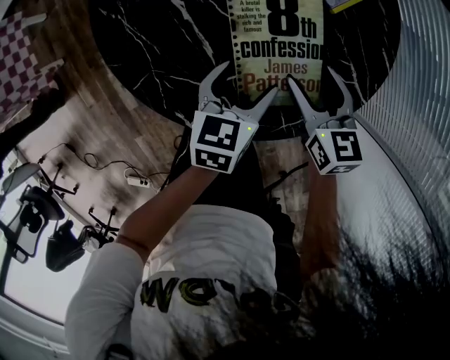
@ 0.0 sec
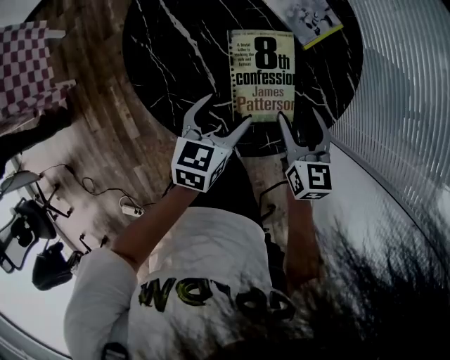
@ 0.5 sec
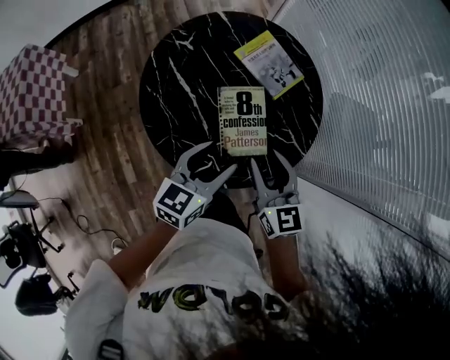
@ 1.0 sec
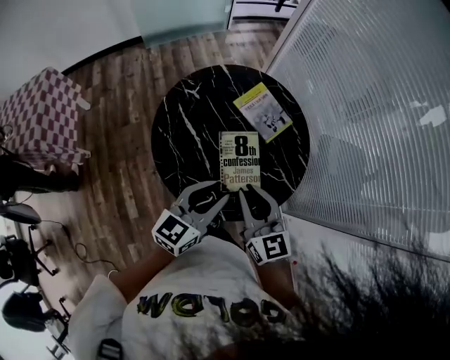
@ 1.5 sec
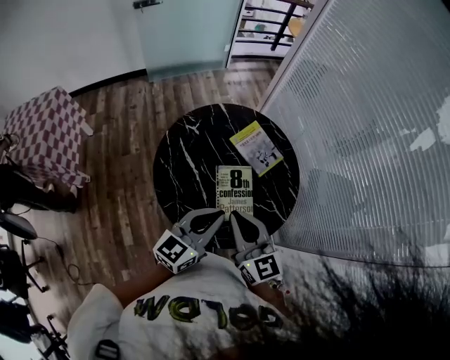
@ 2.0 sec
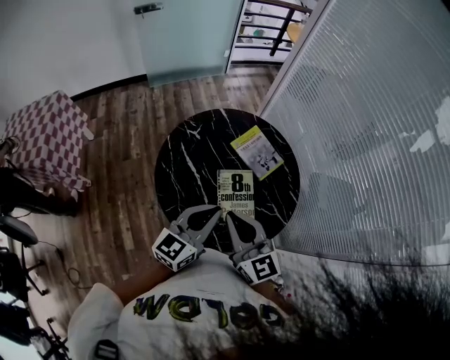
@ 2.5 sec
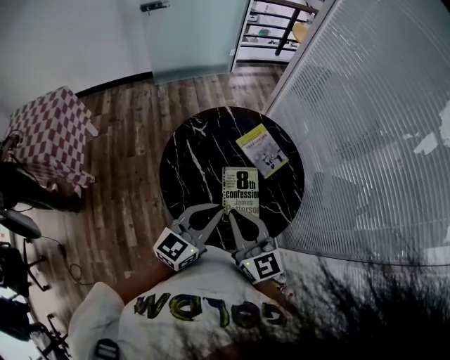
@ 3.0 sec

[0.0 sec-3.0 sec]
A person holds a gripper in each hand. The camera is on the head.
0.0 sec to 1.5 sec: The grippers both shift upward by some 35 cm. The right gripper turns by some 30 degrees, and closes up; the left gripper turns by roughly 30 degrees, and closes up.
1.5 sec to 3.0 sec: The left gripper changes place by approximately 5 cm. Meanwhile the right gripper goes about 10 cm upward and to the left.

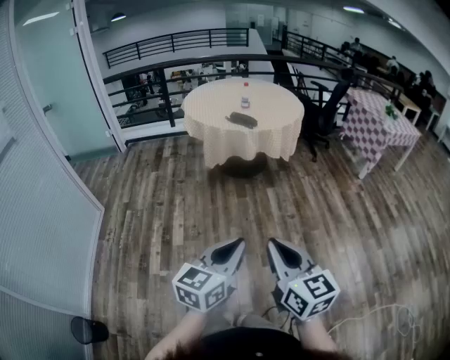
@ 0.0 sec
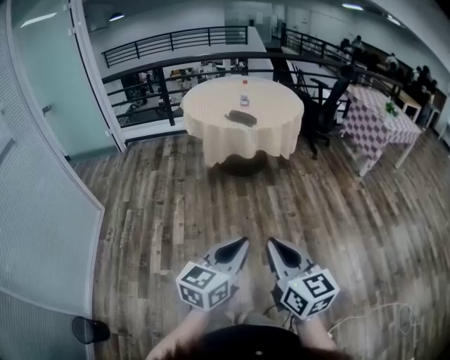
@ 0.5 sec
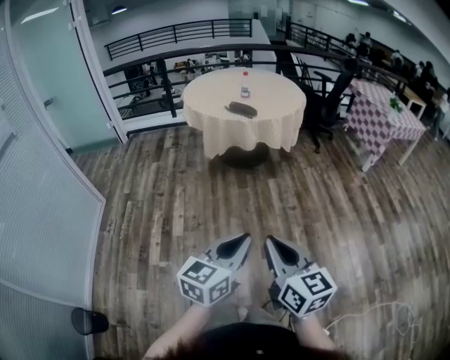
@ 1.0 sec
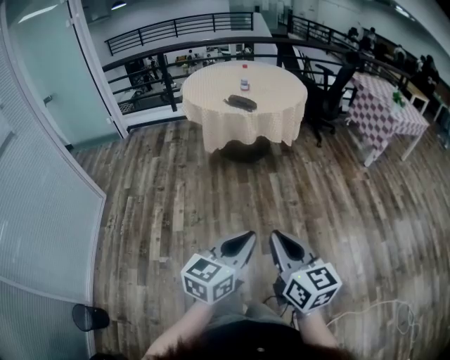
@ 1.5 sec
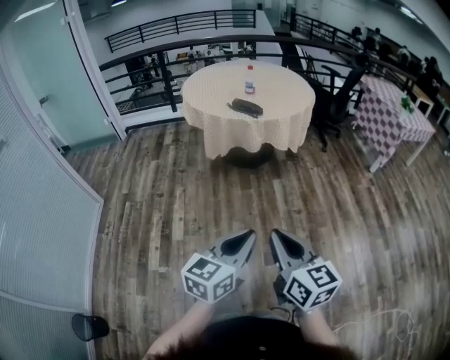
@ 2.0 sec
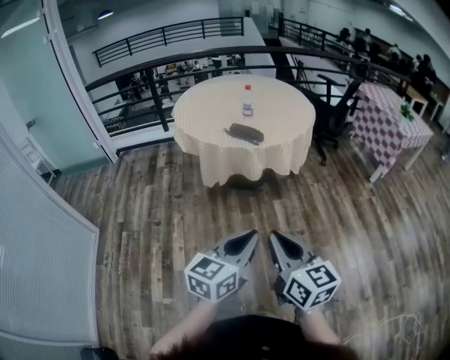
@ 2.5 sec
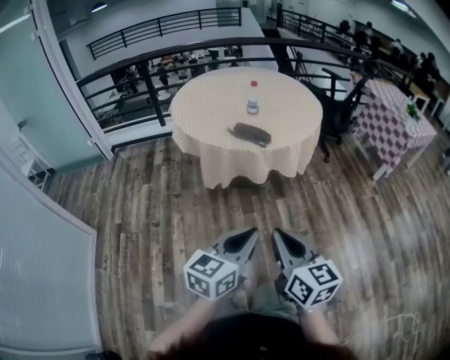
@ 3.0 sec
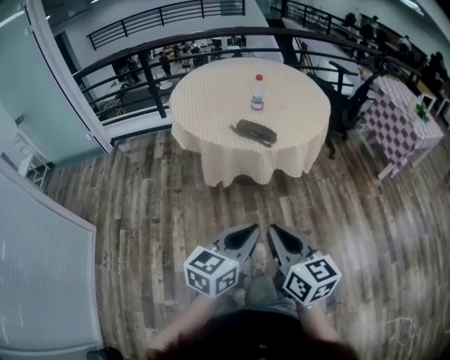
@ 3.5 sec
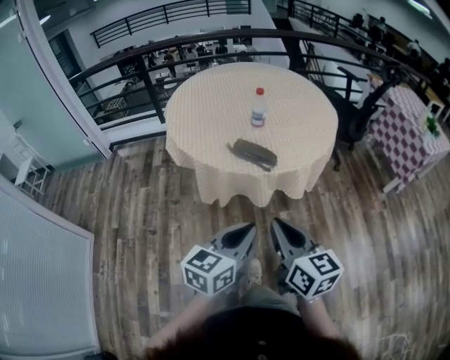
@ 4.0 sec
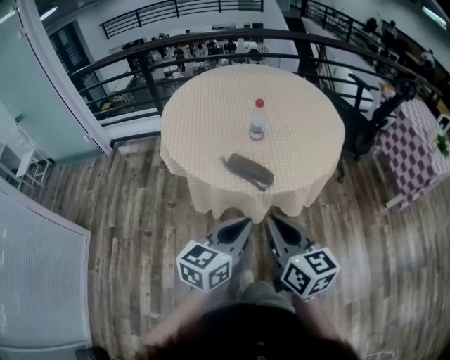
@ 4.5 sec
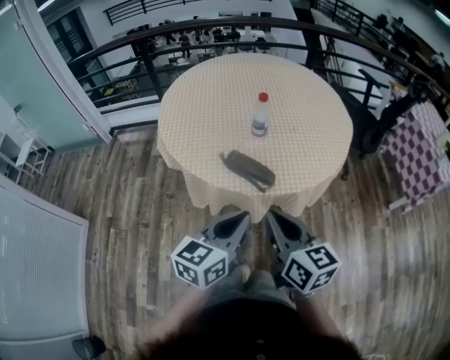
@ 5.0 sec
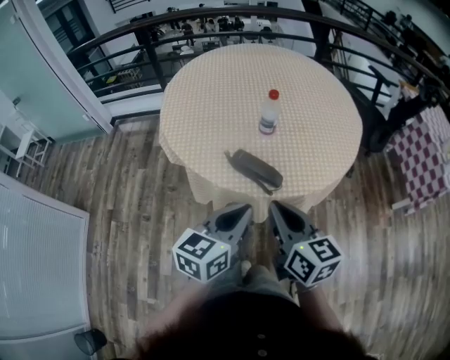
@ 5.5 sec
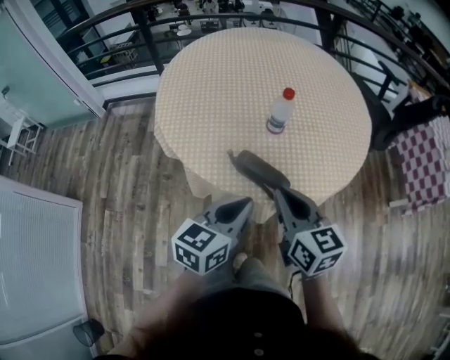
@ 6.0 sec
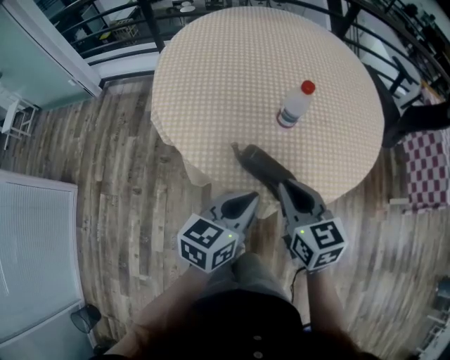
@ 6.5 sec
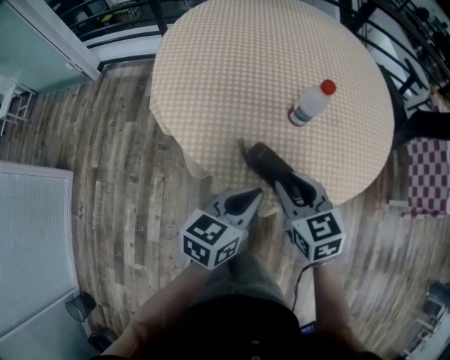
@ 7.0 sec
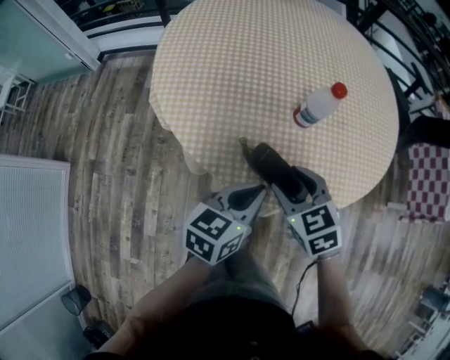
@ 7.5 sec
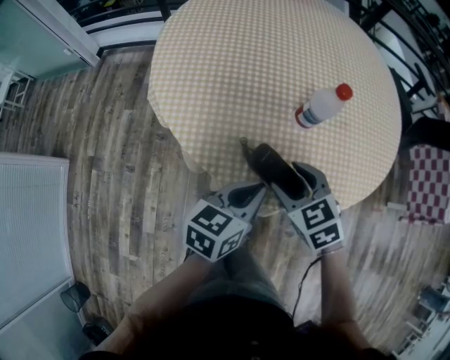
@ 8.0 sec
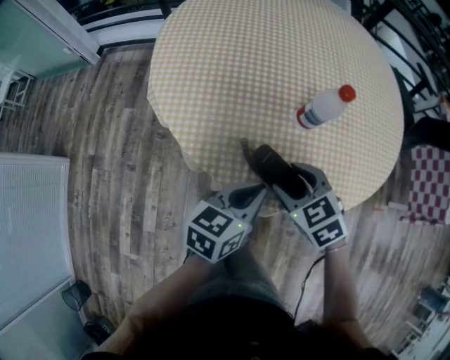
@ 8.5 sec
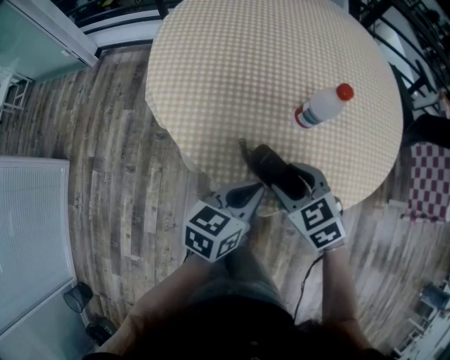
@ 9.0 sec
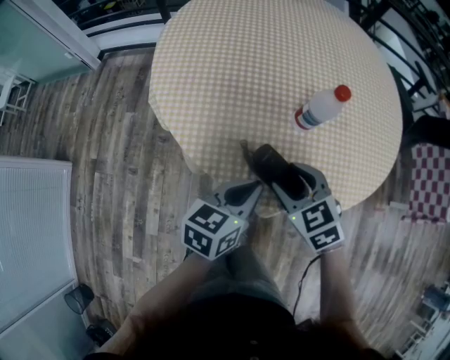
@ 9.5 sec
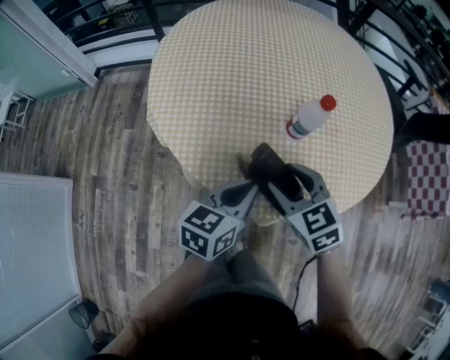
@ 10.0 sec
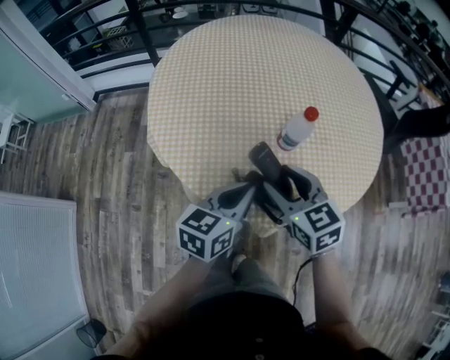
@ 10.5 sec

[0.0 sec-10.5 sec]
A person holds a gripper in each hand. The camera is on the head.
0.0 sec to 2.0 sec: The left gripper moves forward, some 10 cm; the right gripper is displaced forward and downward by some 15 cm.
2.0 sec to 4.0 sec: The two grippers travel together, forward, approximately 40 cm.
4.0 sec to 6.5 sec: The two grippers go roughly 30 cm forward. The right gripper turns by roughly 20 degrees.
6.5 sec to 8.5 sec: Both grippers move downward and forward, roughly 10 cm. The right gripper rotates roughly 40 degrees, and opens up.
8.5 sec to 10.5 sec: The left gripper shifts approximately 5 cm upward. The right gripper moves upward, about 10 cm, and rotates about 30 degrees.

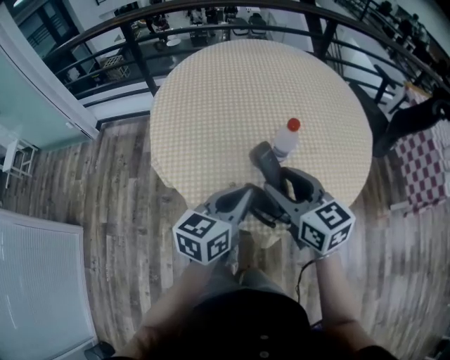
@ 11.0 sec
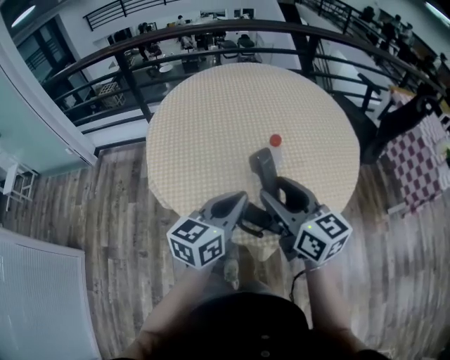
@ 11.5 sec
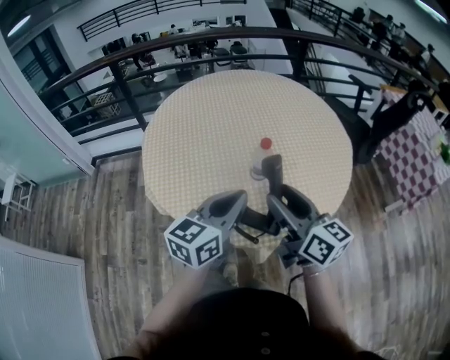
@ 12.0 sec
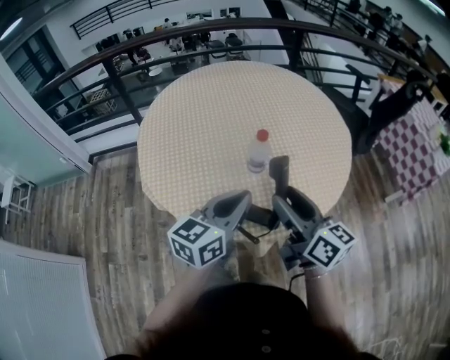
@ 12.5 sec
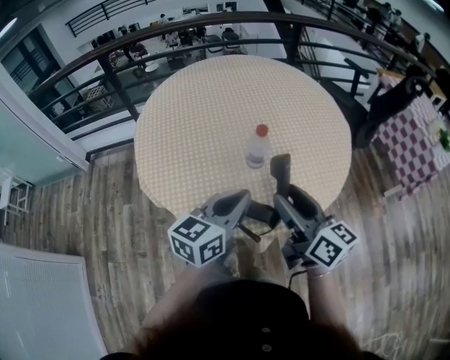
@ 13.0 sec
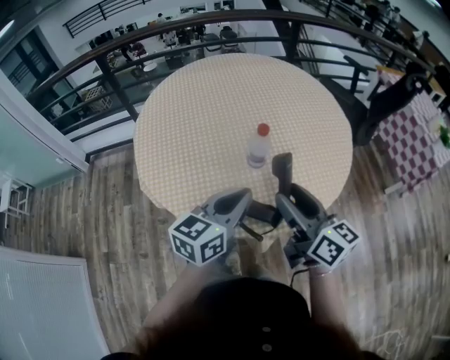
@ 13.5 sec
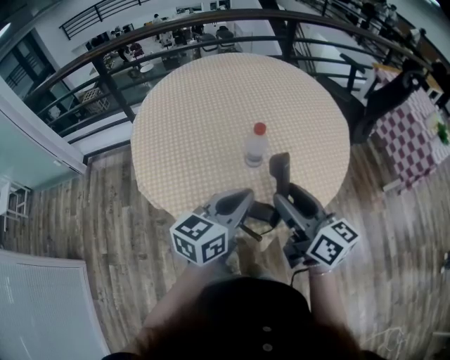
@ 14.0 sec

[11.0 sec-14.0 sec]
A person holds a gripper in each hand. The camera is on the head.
11.0 sec to 12.5 sec: The left gripper moves to the right, roughly 5 cm. The right gripper heads to the right, covering about 10 cm, and turns by some 30 degrees.
12.5 sec to 14.0 sec: The grippers make only small movements.

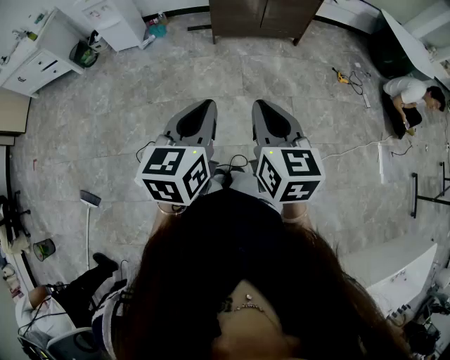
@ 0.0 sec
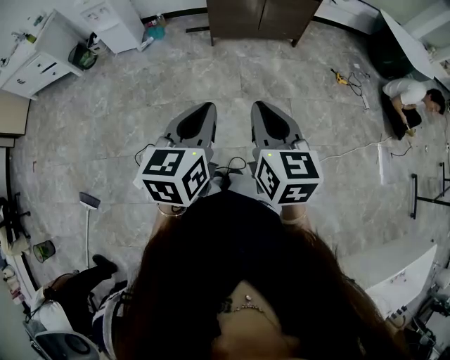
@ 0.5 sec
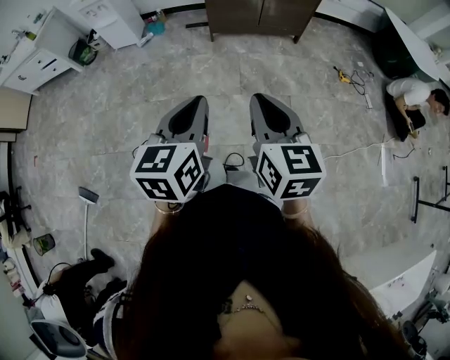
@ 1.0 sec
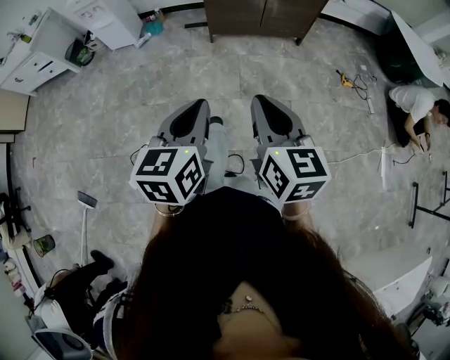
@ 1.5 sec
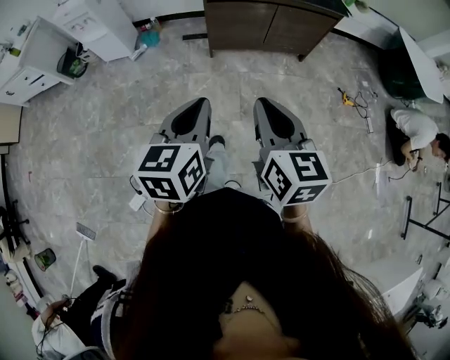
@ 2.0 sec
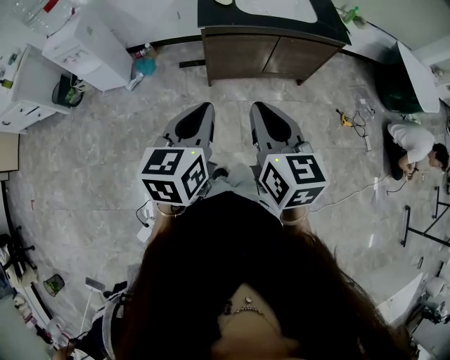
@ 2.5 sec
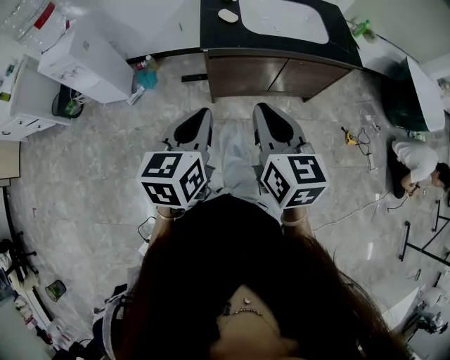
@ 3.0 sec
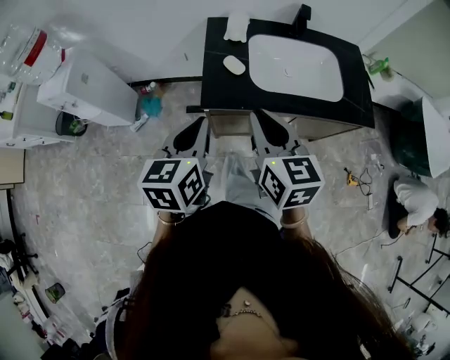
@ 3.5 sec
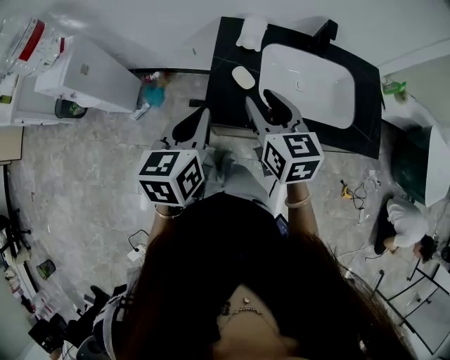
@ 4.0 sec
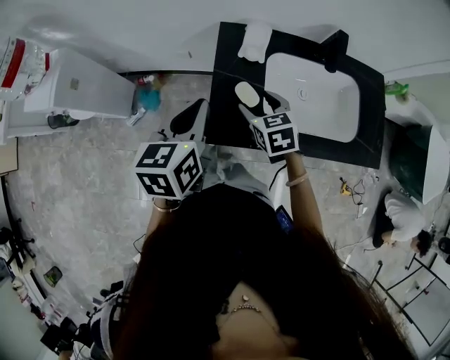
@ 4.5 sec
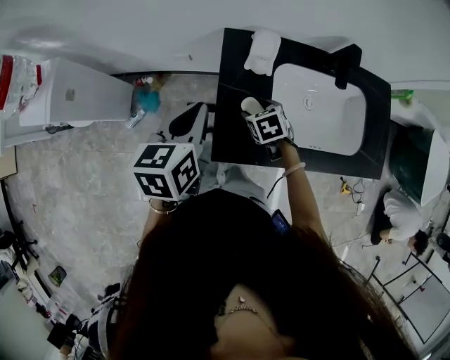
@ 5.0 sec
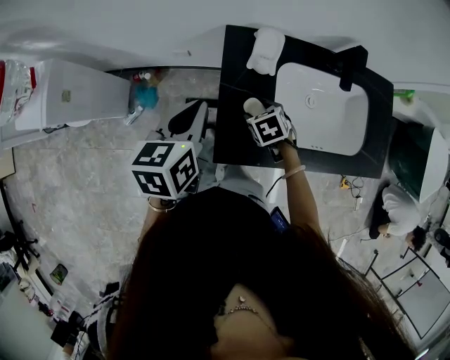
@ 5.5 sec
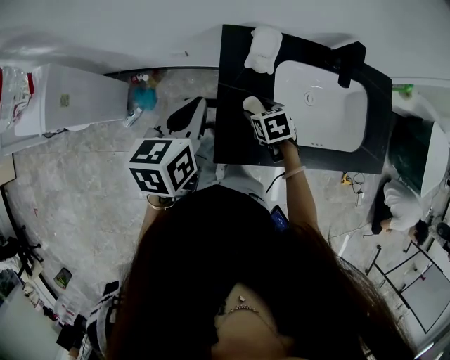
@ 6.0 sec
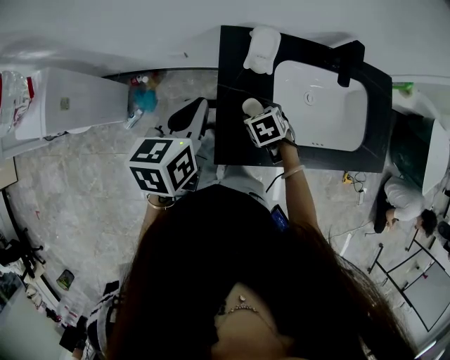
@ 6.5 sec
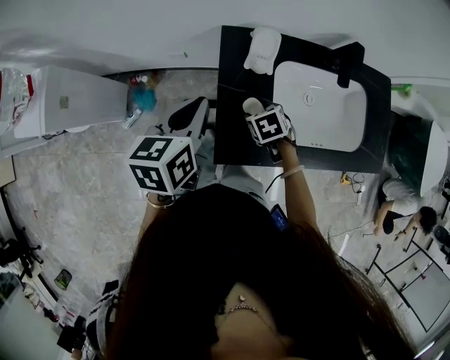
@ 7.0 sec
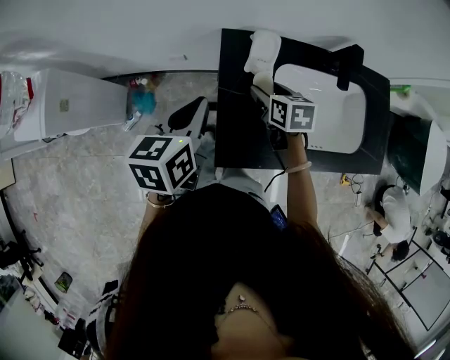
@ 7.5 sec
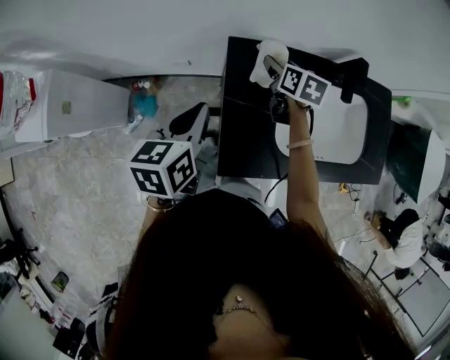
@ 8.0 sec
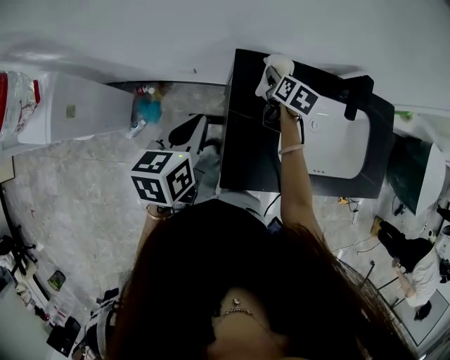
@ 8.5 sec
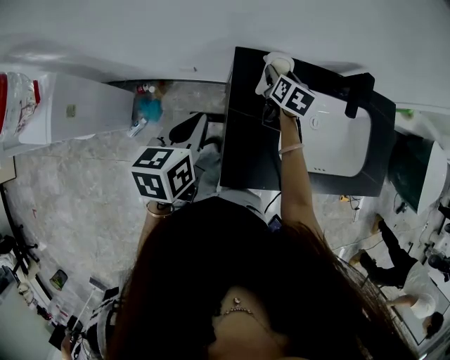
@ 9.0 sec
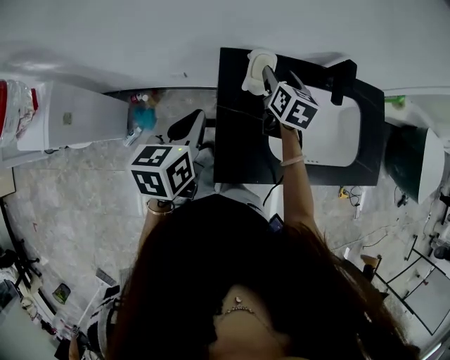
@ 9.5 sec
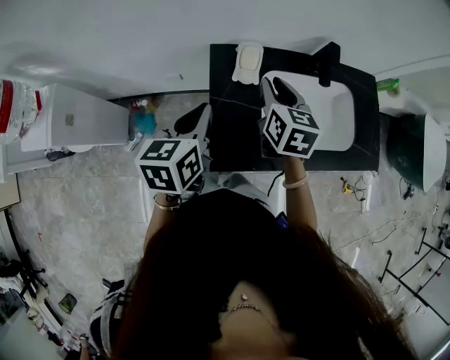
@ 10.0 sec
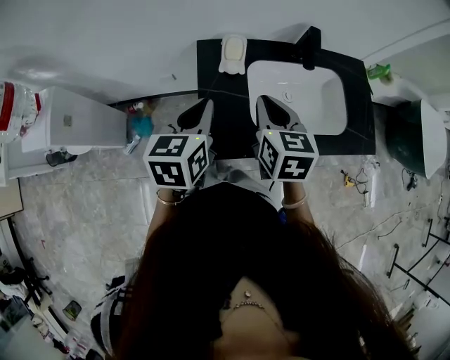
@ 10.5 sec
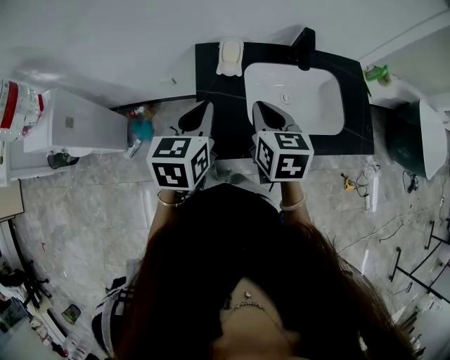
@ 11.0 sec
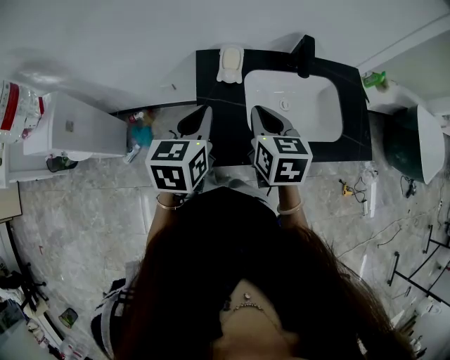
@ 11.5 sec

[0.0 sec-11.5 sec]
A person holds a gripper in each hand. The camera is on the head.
0.0 sec to 2.0 sec: The two grippers go some 30 cm forward.
2.0 sec to 4.0 sec: The pair of grippers is taken forward, approximately 70 cm. The right gripper opens its fingers.
4.0 sec to 6.0 sec: The left gripper is displaced forward by some 20 cm, while the right gripper shifts approximately 30 cm downward and forward, tilts its fingers some 40 degrees downward, and opens its fingers.
6.0 sec to 7.5 sec: The right gripper is displaced upward and forward by roughly 10 cm, and changes its angle by roughly 20 degrees.
7.5 sec to 9.5 sec: The right gripper travels forward and upward by some 10 cm, and turns by roughly 30 degrees.
9.5 sec to 11.5 sec: The left gripper is displaced to the right and backward by approximately 10 cm, while the right gripper shifts about 25 cm backward and upward, and closes.
